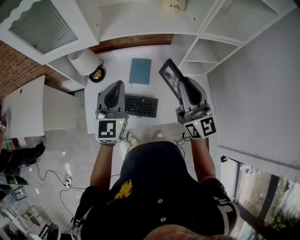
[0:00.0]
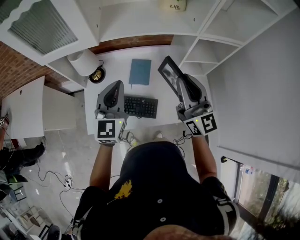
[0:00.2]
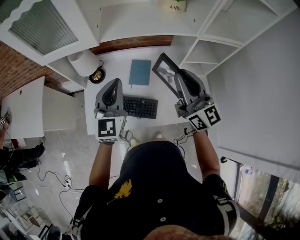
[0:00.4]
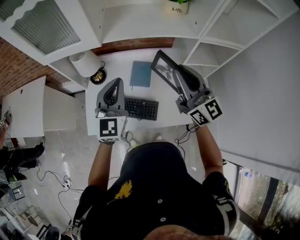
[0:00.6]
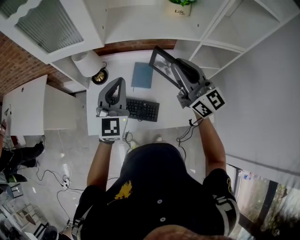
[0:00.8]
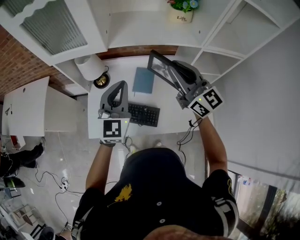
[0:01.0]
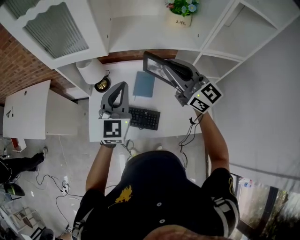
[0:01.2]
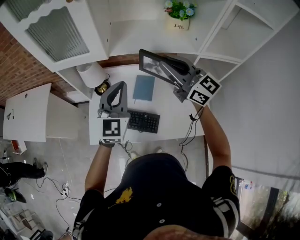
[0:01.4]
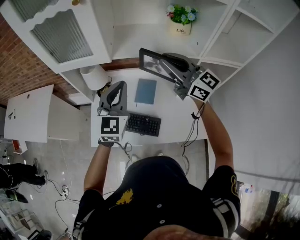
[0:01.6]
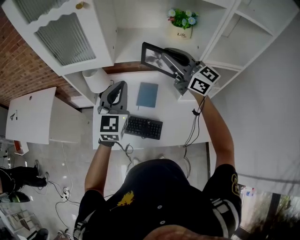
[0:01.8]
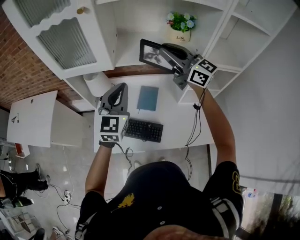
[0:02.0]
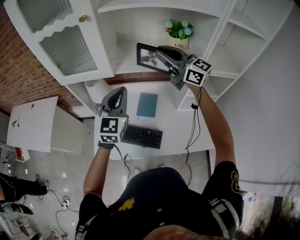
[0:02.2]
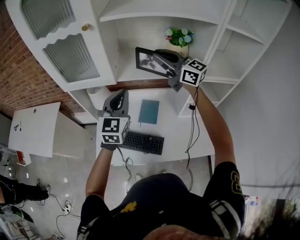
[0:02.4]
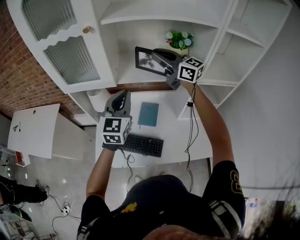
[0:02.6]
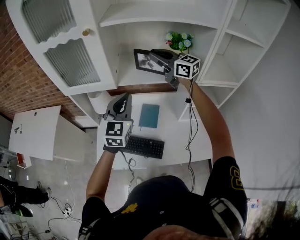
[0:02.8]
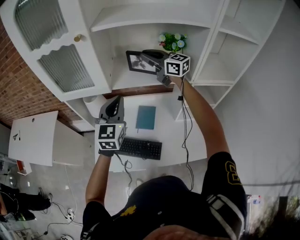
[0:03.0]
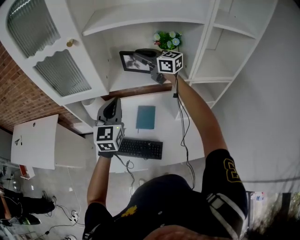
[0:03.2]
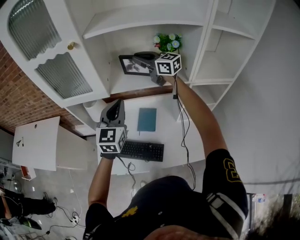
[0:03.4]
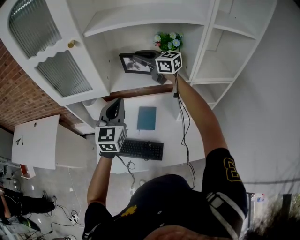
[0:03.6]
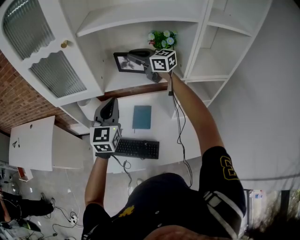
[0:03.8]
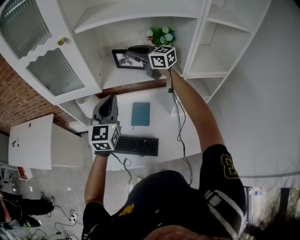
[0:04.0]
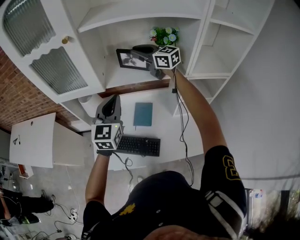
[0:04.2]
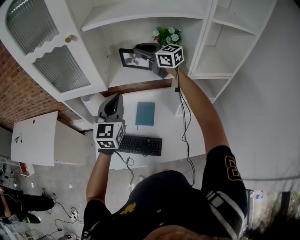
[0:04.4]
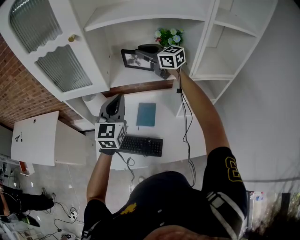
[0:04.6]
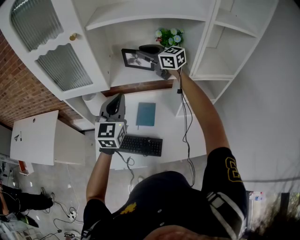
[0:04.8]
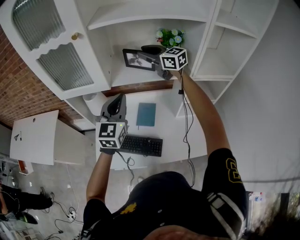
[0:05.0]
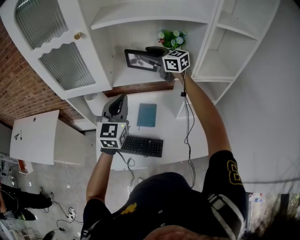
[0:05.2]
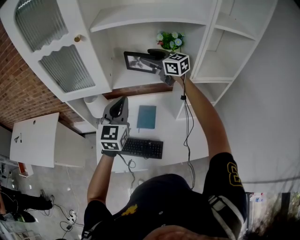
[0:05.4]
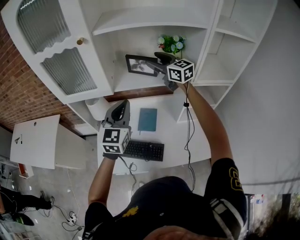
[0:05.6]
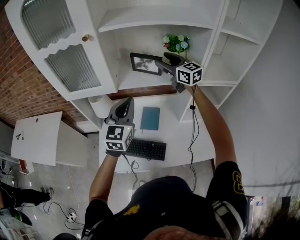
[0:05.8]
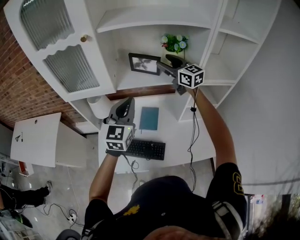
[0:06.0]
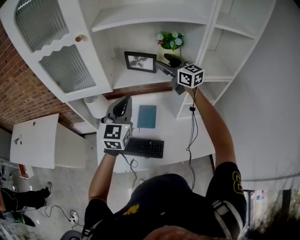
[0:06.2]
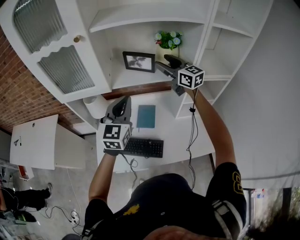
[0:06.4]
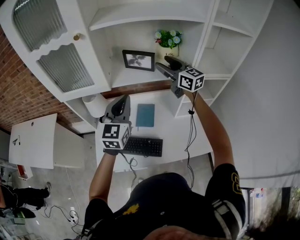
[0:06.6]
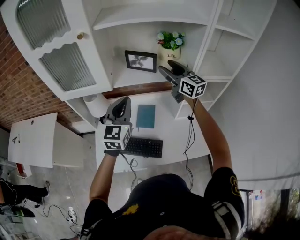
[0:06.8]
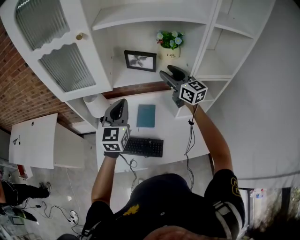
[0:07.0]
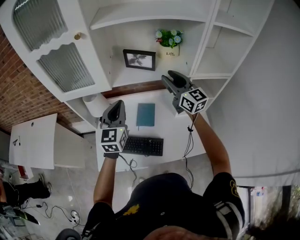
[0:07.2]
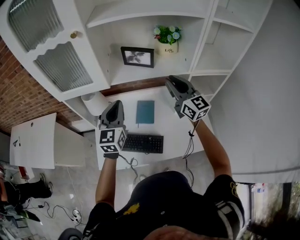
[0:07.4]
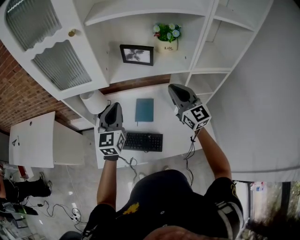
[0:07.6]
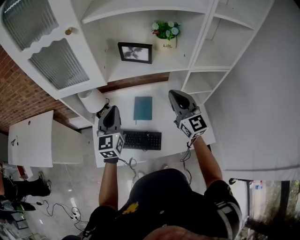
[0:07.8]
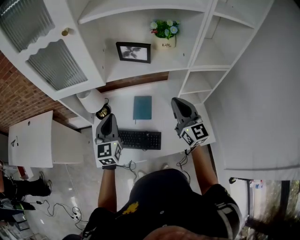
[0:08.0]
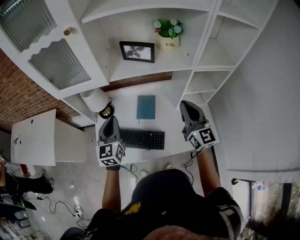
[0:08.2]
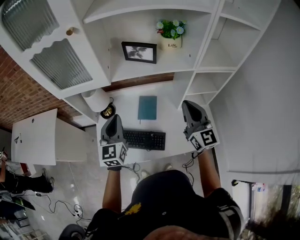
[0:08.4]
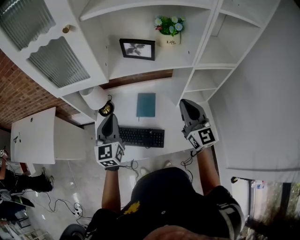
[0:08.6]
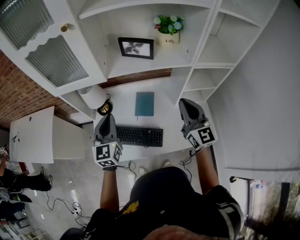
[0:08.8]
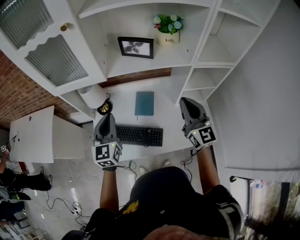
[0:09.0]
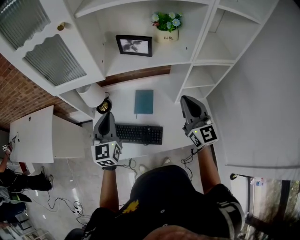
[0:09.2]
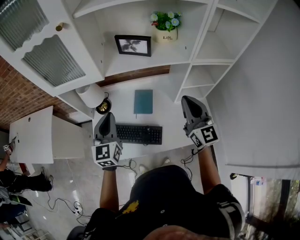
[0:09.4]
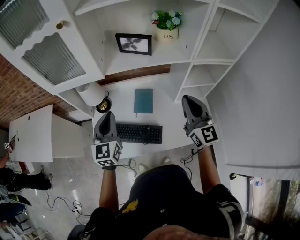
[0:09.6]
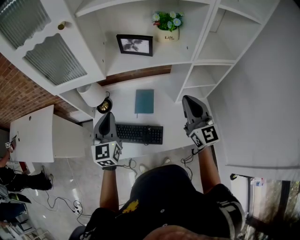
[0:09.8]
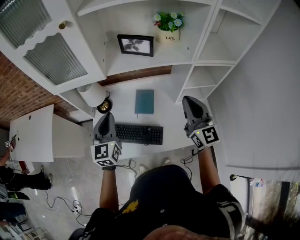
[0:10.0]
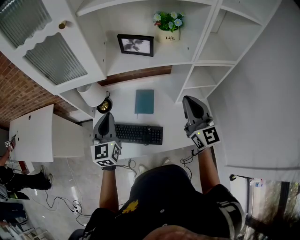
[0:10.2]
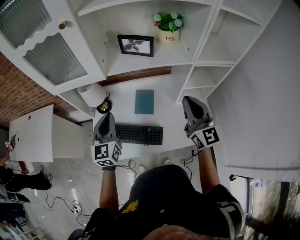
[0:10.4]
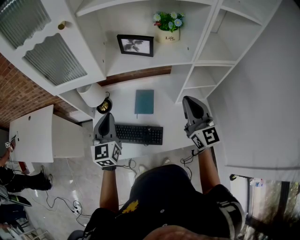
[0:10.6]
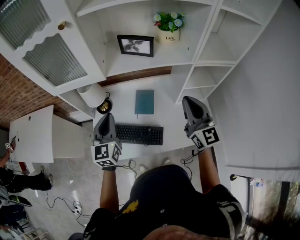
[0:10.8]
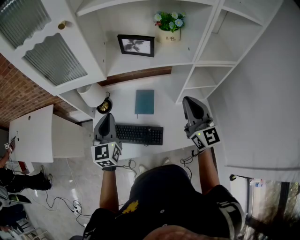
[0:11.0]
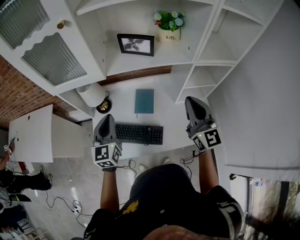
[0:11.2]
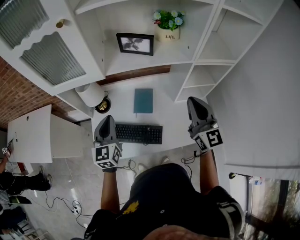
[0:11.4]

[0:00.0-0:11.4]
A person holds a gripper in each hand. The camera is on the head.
0:00.0 to 0:01.4: The right gripper travels forward, upward and to the left by some 15 cm, and turns by roughly 30 degrees, while the left gripper moves about 5 cm.
0:01.4 to 0:02.8: The left gripper shifts by roughly 5 cm. Meanwhile the right gripper moves forward, about 15 cm.
0:02.8 to 0:04.2: The grippers stay close to where they were, moving slightly.
0:04.2 to 0:05.6: The right gripper opens.
0:05.6 to 0:07.2: The right gripper is displaced backward by roughly 10 cm.
0:07.2 to 0:08.6: The right gripper moves backward and downward, roughly 15 cm, and closes its fingers. The left gripper shifts some 5 cm downward.
0:08.6 to 0:11.4: The grippers make only small movements.

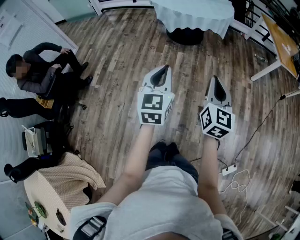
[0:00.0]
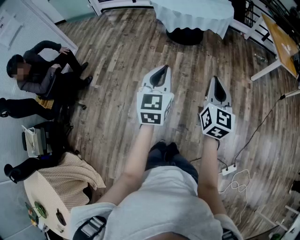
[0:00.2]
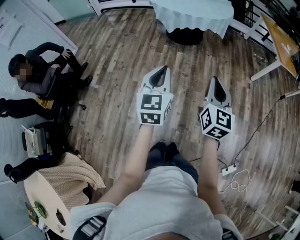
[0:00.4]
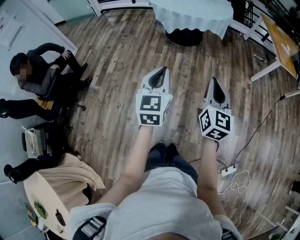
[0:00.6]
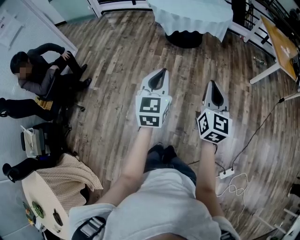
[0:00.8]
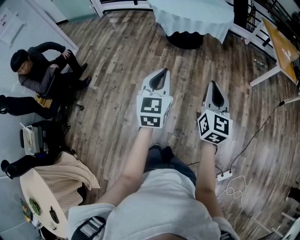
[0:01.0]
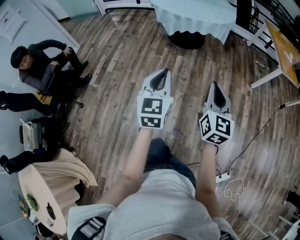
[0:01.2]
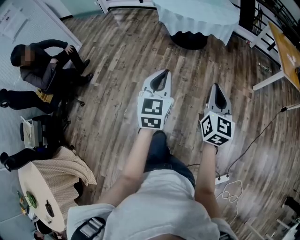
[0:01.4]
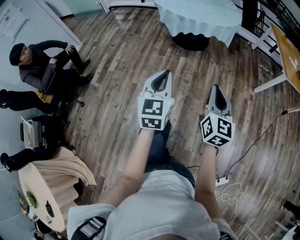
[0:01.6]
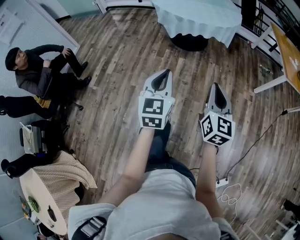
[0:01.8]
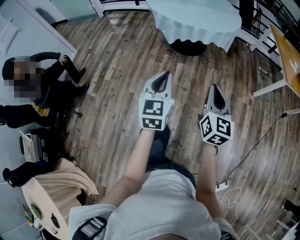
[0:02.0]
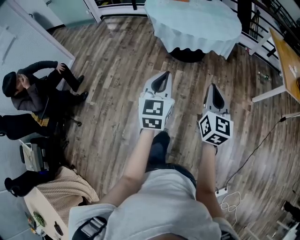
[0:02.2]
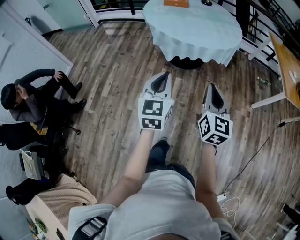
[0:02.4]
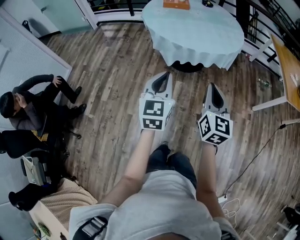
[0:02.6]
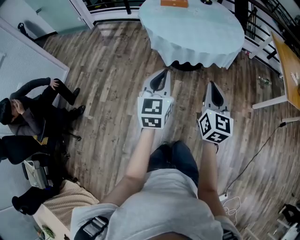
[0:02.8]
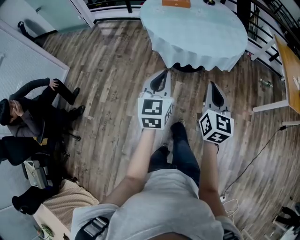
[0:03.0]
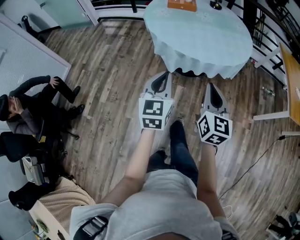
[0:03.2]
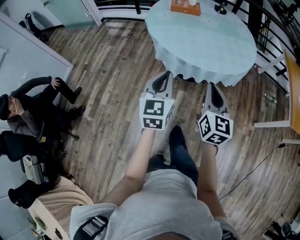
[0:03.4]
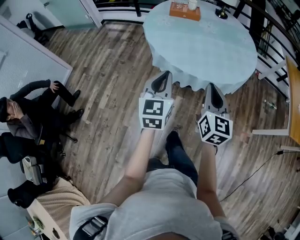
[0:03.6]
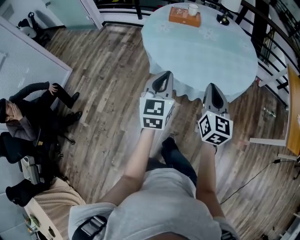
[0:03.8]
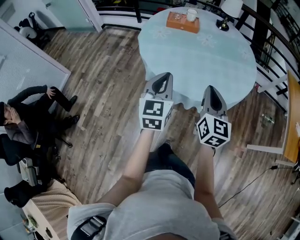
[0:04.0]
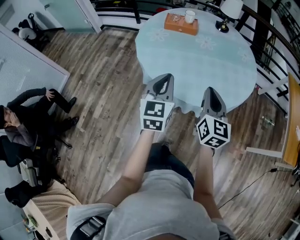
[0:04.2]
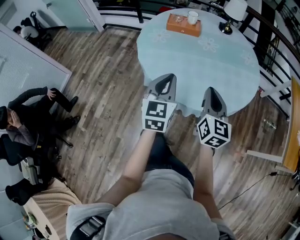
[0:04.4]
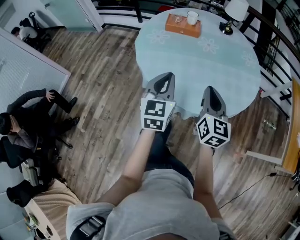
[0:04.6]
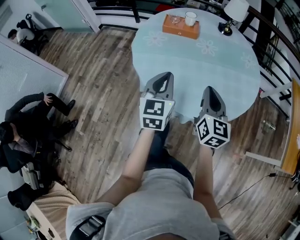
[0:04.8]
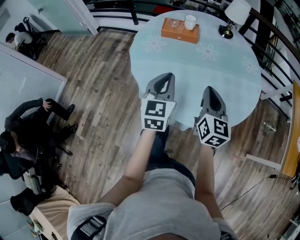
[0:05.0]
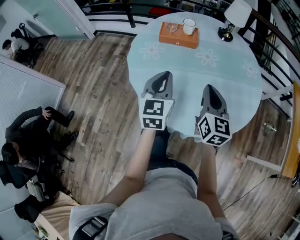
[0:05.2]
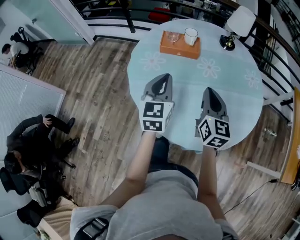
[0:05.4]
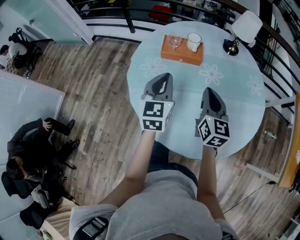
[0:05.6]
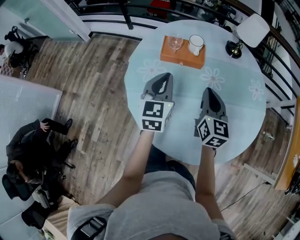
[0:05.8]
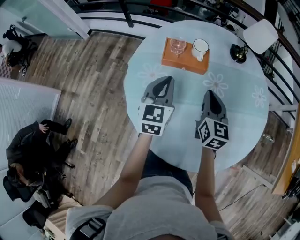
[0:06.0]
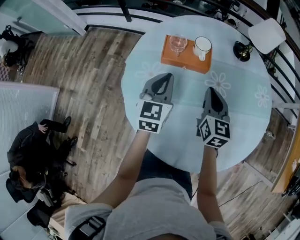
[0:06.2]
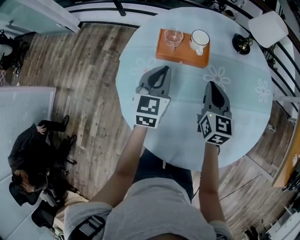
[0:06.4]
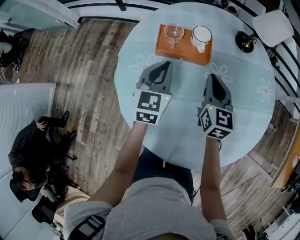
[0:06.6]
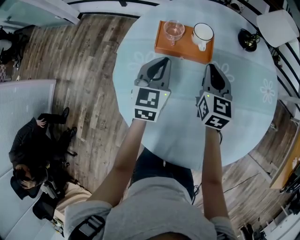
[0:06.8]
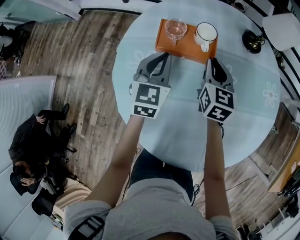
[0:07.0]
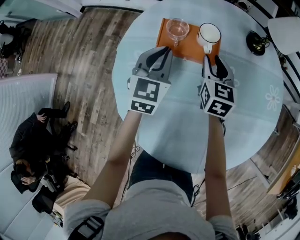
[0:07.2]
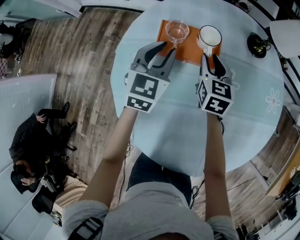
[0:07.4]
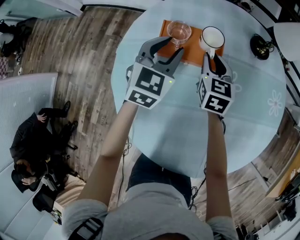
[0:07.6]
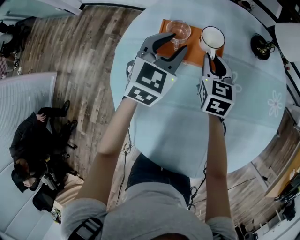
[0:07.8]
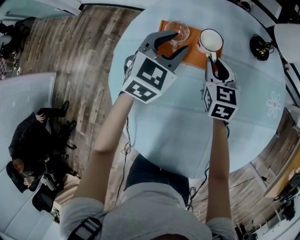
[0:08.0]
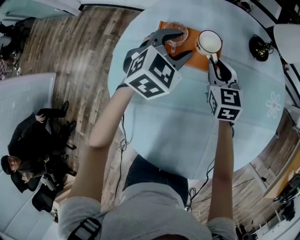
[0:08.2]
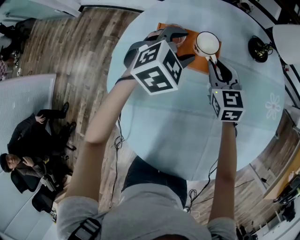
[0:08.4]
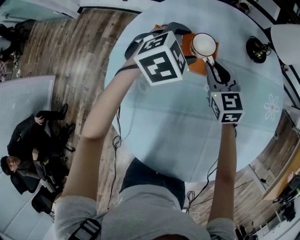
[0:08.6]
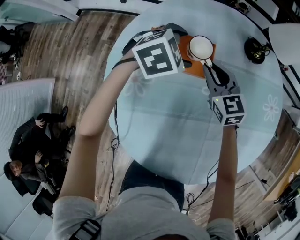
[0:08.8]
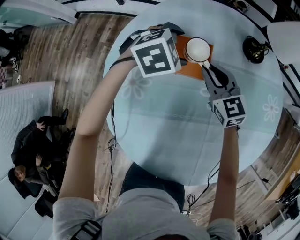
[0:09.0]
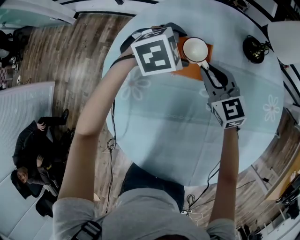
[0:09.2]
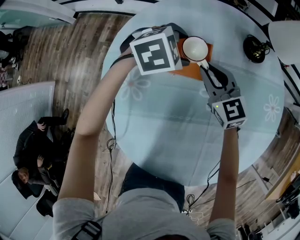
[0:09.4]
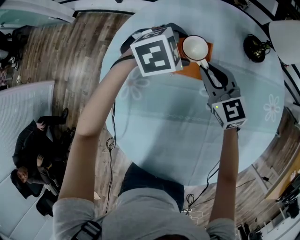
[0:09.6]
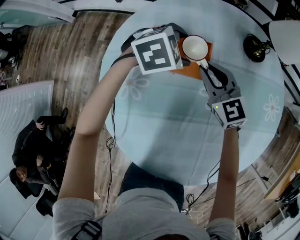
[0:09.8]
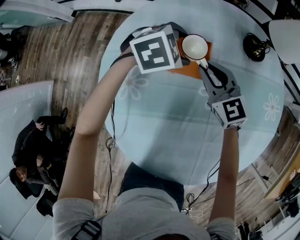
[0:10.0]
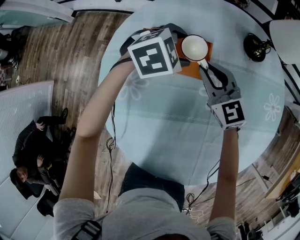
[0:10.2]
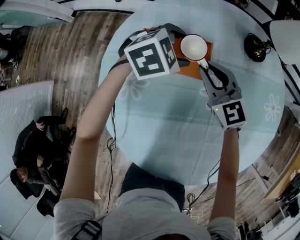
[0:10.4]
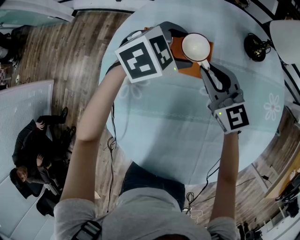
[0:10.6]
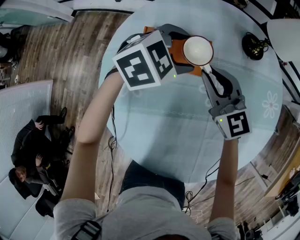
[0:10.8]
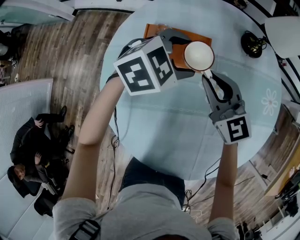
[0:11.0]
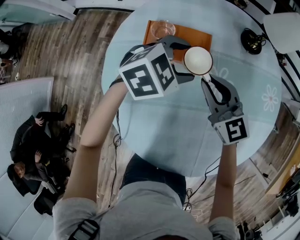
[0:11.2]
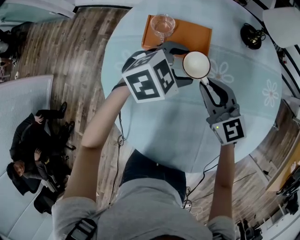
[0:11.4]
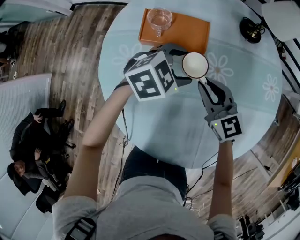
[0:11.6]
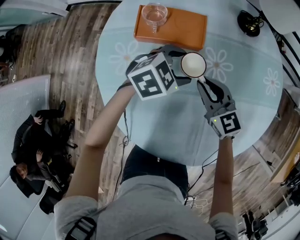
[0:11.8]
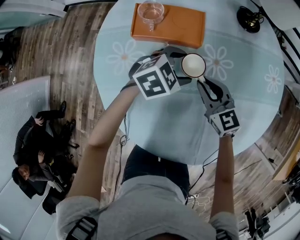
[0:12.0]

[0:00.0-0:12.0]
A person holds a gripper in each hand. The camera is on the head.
0:00.0 to 0:01.6: The left gripper moves forward, roughly 5 cm. The right gripper is displaced forward and to the right by approximately 10 cm.
0:01.6 to 0:03.0: The two grippers travel together, forward, approximately 40 cm.
0:03.0 to 0:04.4: The two grippers go about 35 cm forward.
0:04.4 to 0:06.0: The grippers both shift forward by approximately 40 cm.
0:06.0 to 0:07.6: The left gripper is displaced forward by some 15 cm, and opens; the right gripper travels forward and downward by some 20 cm.
0:07.6 to 0:09.0: The left gripper travels to the right, forward and downward by about 10 cm, angles its fingers downward, by approximately 30 degrees, and opens; the right gripper turns by about 30 degrees.
0:09.0 to 0:10.4: The grippers move only a little.
0:10.4 to 0:12.0: The left gripper travels backward and to the right by some 15 cm. Meanwhile the right gripper heads backward, to the right and downward, covering about 15 cm.
